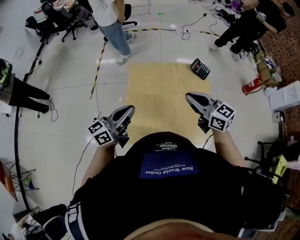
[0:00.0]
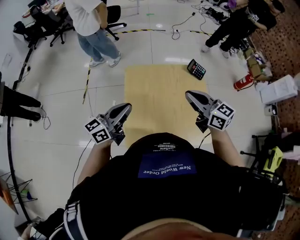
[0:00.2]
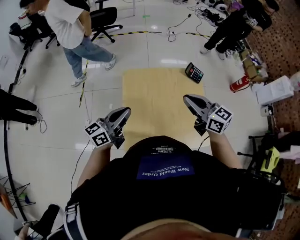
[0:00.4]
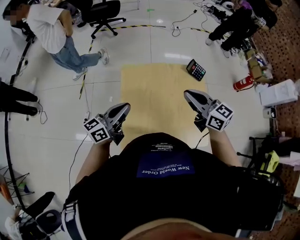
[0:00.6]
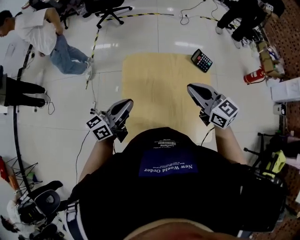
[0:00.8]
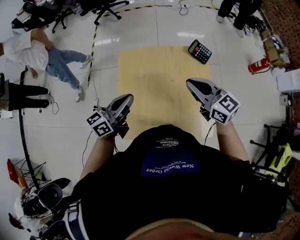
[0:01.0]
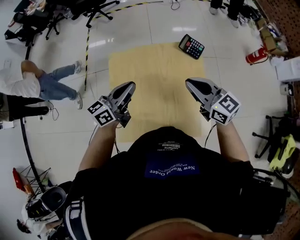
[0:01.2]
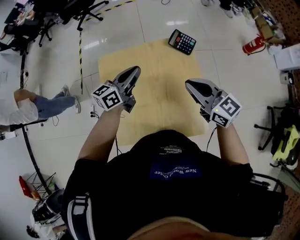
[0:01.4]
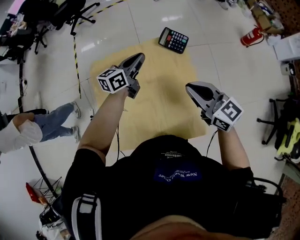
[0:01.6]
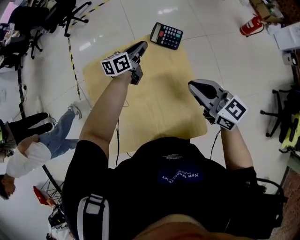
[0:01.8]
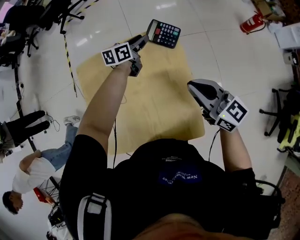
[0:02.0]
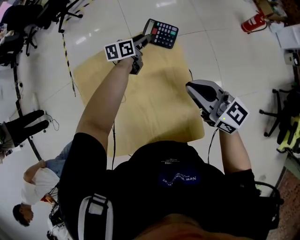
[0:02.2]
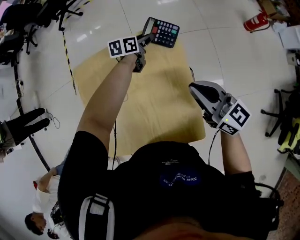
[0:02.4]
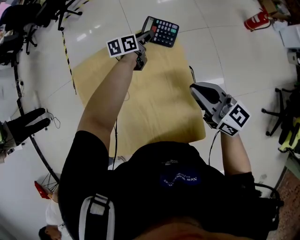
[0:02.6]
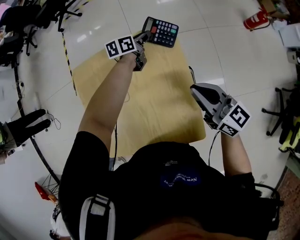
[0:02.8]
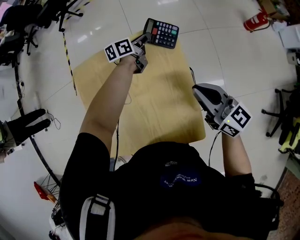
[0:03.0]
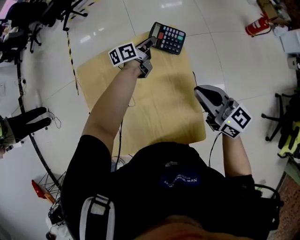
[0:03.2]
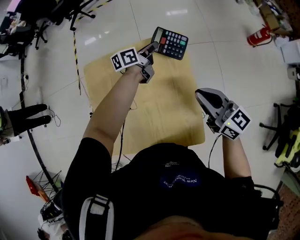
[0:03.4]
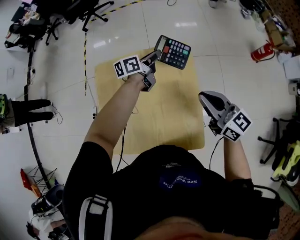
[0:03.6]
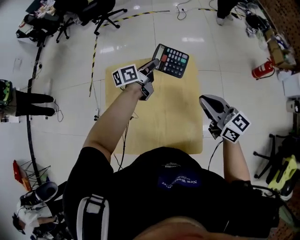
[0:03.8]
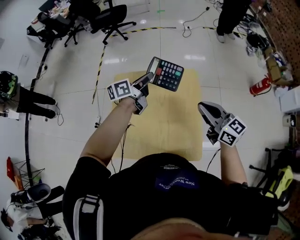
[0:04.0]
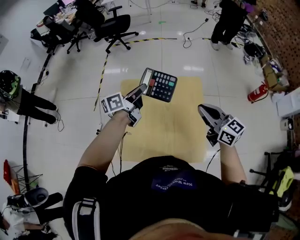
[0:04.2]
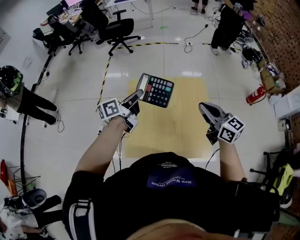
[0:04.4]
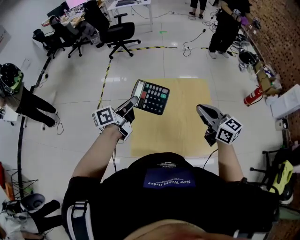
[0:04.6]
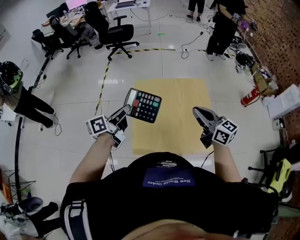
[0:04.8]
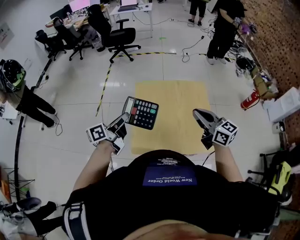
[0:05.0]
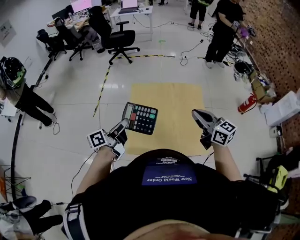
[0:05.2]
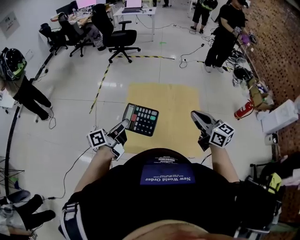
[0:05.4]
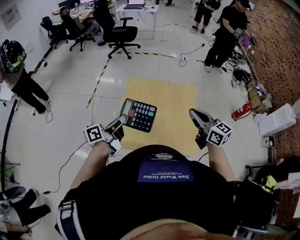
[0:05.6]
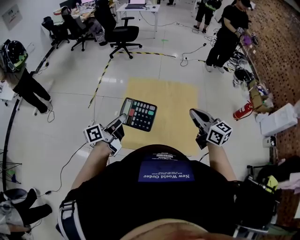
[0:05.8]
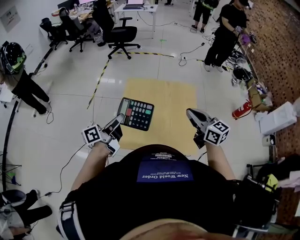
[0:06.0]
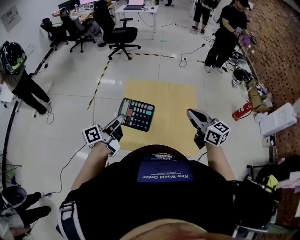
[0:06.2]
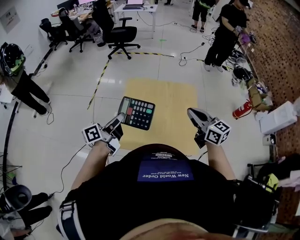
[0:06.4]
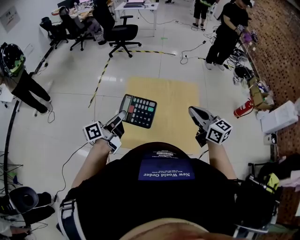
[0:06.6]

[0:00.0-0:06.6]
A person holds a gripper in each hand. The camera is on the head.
0:00.0 to 0:01.6: The left gripper shifts some 40 cm forward, to the right and downward, and swivels some 20 degrees, while the right gripper goes some 20 cm to the right and downward.
0:01.6 to 0:03.2: The left gripper moves downward, forward and to the right, about 20 cm, turns by approximately 20 degrees, and opens and closes again; the right gripper is displaced to the right and downward by some 10 cm.
0:03.2 to 0:05.0: The left gripper shifts about 70 cm to the left, backward and upward, and turns by some 30 degrees; the right gripper is displaced to the left, upward and backward by roughly 35 cm.
0:05.0 to 0:06.6: The two grippers go approximately 5 cm to the right.

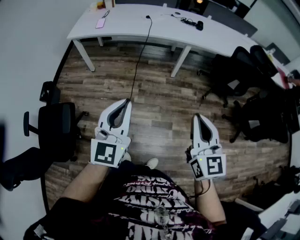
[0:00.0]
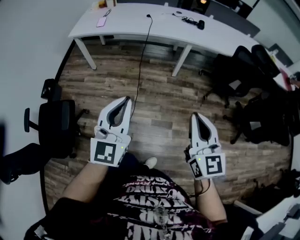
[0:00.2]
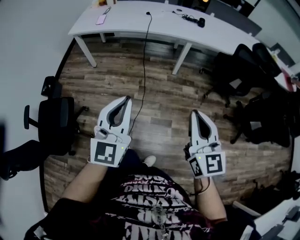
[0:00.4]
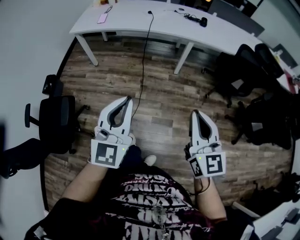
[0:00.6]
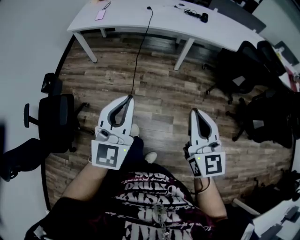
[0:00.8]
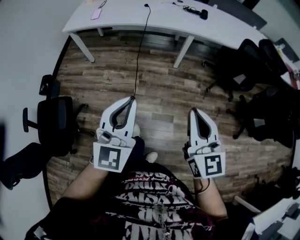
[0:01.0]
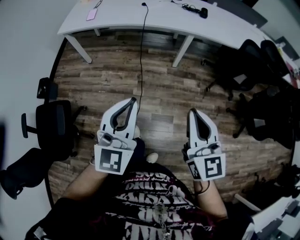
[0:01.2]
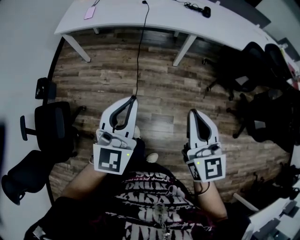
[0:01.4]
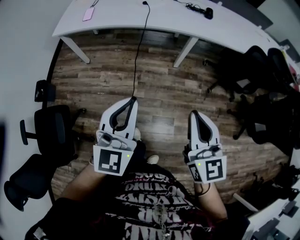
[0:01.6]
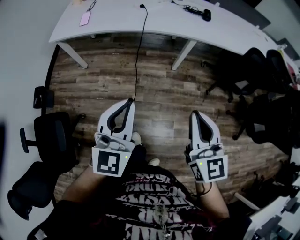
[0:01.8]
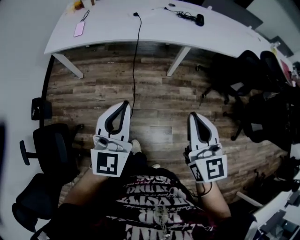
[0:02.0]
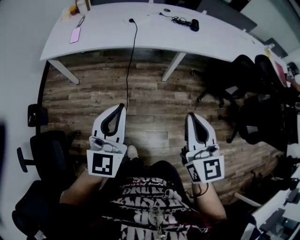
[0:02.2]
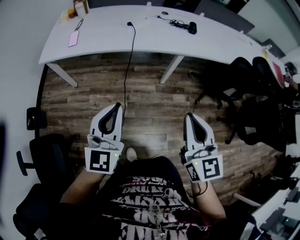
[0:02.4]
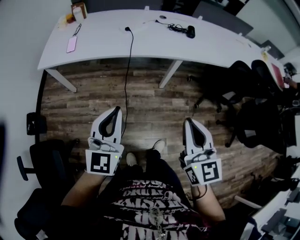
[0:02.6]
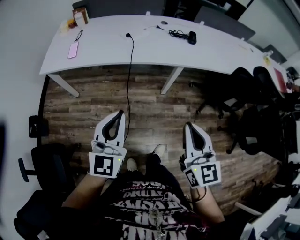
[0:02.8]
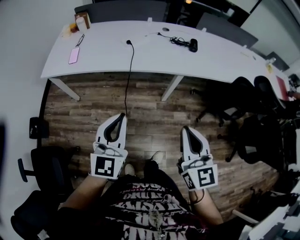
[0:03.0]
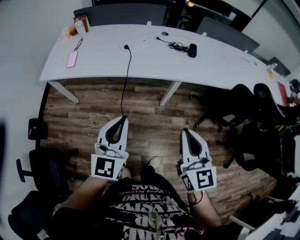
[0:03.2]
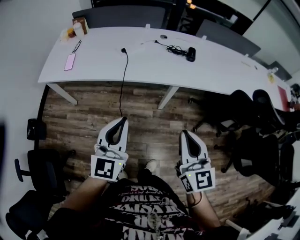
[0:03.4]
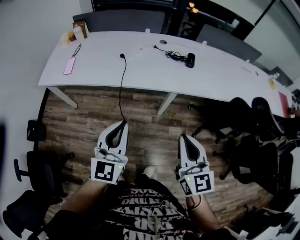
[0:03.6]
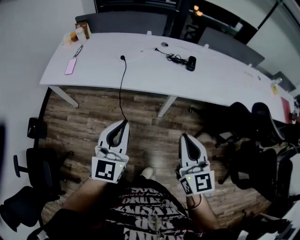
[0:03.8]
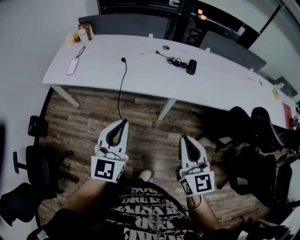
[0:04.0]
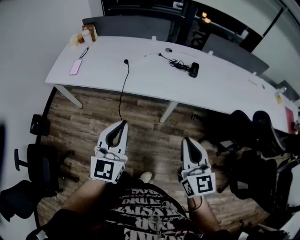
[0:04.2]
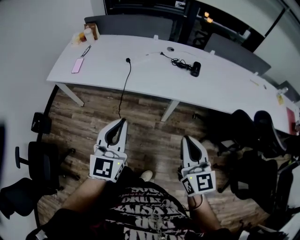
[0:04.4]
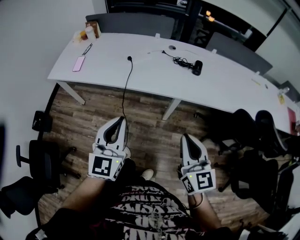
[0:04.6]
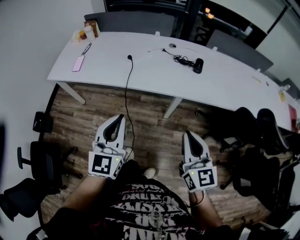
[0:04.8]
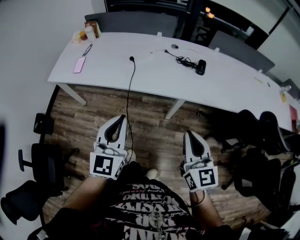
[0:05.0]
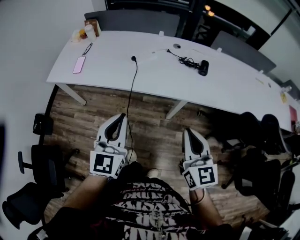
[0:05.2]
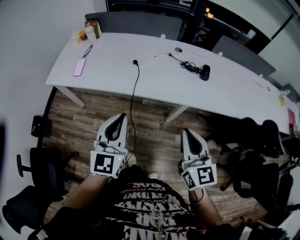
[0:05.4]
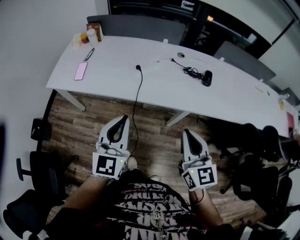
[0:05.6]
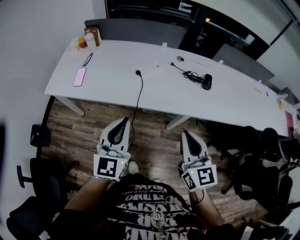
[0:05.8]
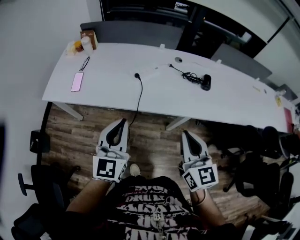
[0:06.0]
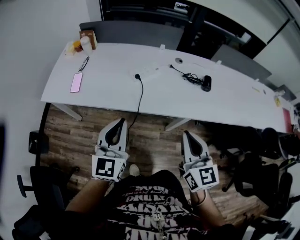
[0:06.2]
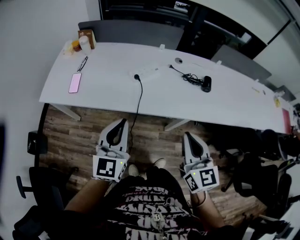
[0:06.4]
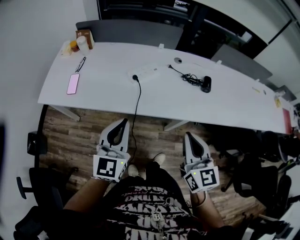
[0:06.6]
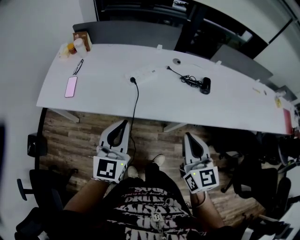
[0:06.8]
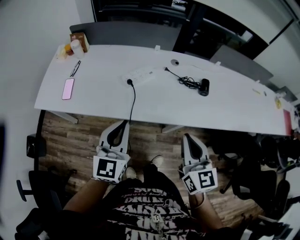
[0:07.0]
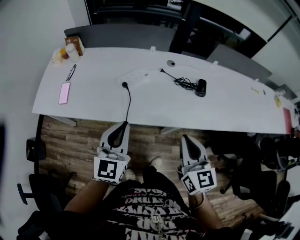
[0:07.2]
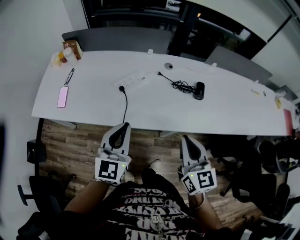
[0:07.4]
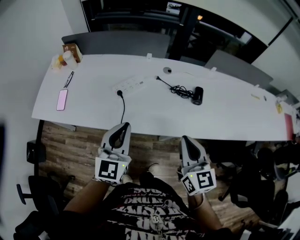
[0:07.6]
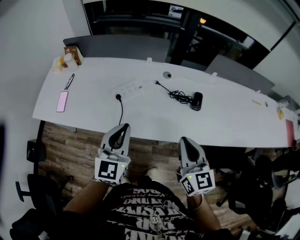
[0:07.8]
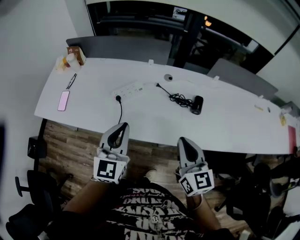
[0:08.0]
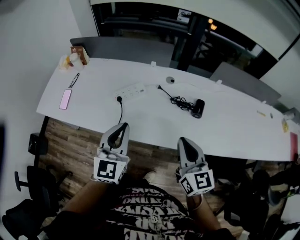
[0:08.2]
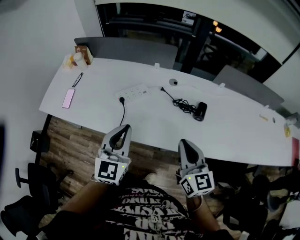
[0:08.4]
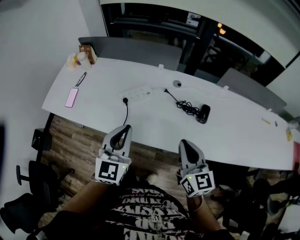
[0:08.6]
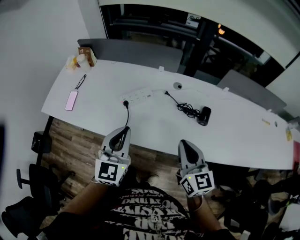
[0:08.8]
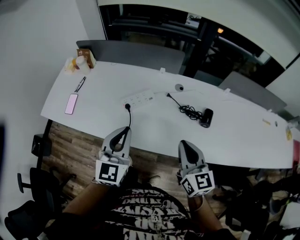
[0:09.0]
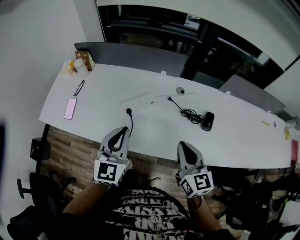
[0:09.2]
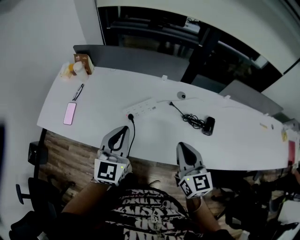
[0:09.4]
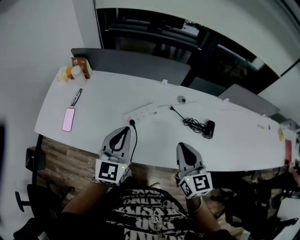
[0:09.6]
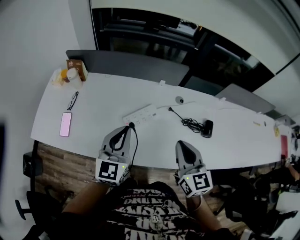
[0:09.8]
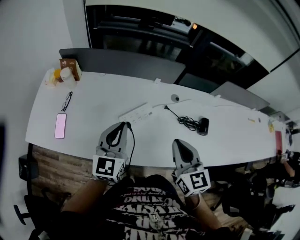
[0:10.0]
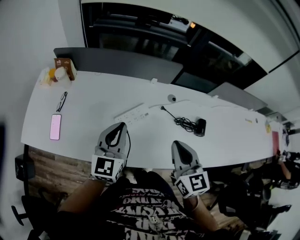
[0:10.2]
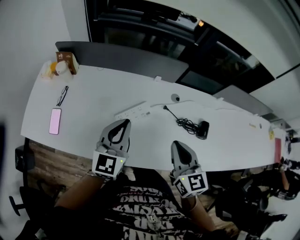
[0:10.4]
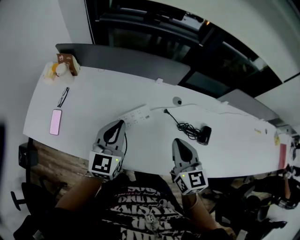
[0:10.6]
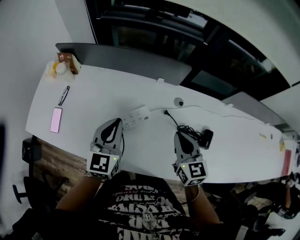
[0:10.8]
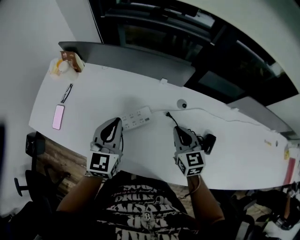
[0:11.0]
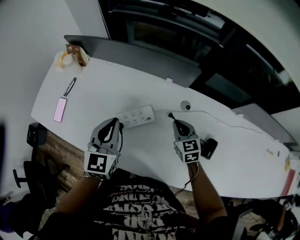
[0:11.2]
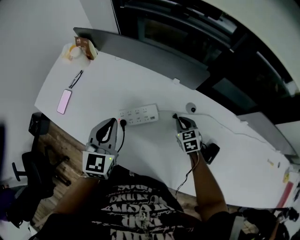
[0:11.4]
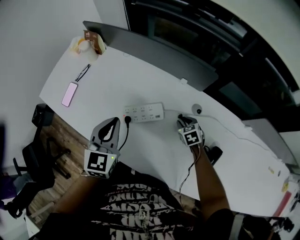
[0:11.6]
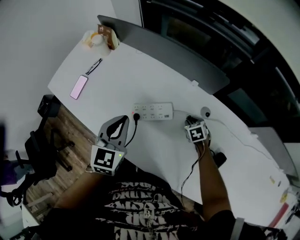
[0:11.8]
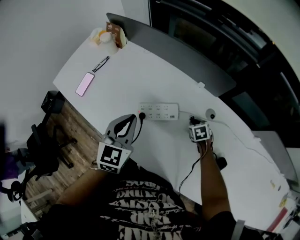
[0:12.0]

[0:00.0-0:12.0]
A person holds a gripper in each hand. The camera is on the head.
0:00.0 to 0:01.6: The grippers both shift forward by about 15 cm.
0:01.6 to 0:03.0: Both grippers travel together forward, some 15 cm.
0:03.0 to 0:04.4: The two grippers go roughly 15 cm to the right and forward.
0:04.4 to 0:06.0: The grippers both shift forward and to the left by some 20 cm.
0:06.0 to 0:07.6: Both grippers travel together forward and to the right, about 15 cm.
0:07.6 to 0:09.0: Both grippers move forward, approximately 10 cm.
0:09.0 to 0:10.4: The grippers both shift forward and to the left by approximately 15 cm.
0:10.4 to 0:12.0: The left gripper heads downward, covering roughly 5 cm, and turns by roughly 30 degrees, while the right gripper moves downward, about 35 cm, and tips its fingers downward by some 50 degrees.

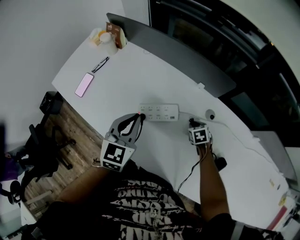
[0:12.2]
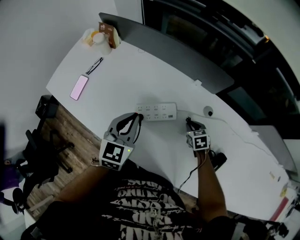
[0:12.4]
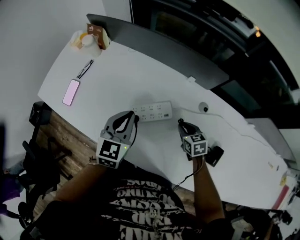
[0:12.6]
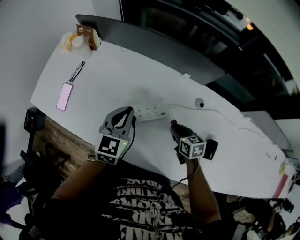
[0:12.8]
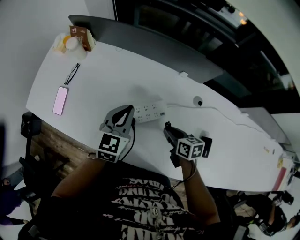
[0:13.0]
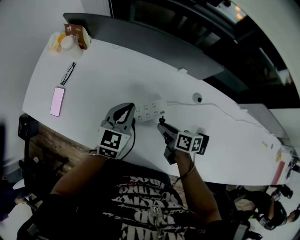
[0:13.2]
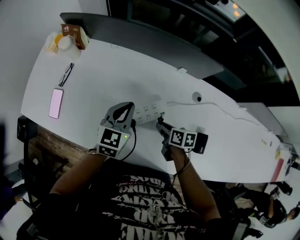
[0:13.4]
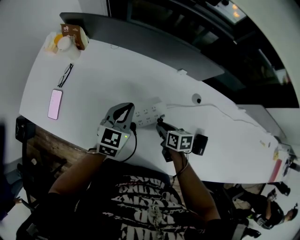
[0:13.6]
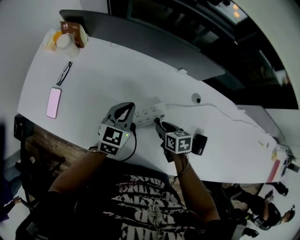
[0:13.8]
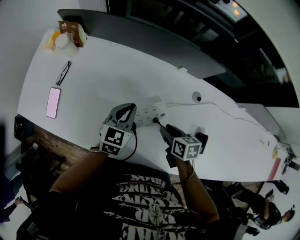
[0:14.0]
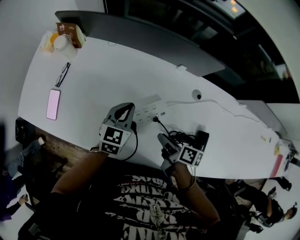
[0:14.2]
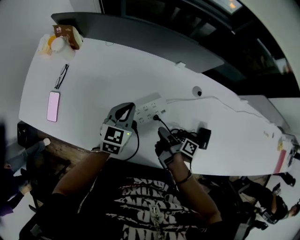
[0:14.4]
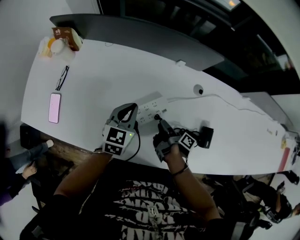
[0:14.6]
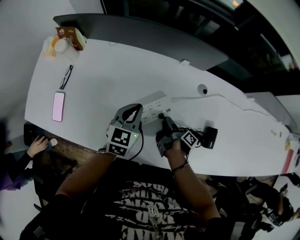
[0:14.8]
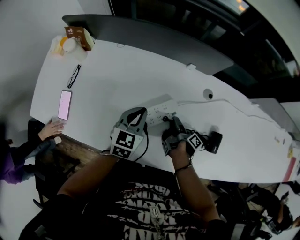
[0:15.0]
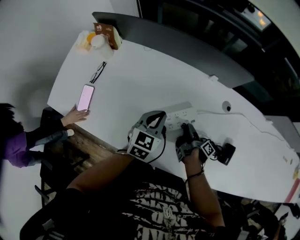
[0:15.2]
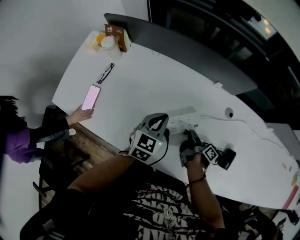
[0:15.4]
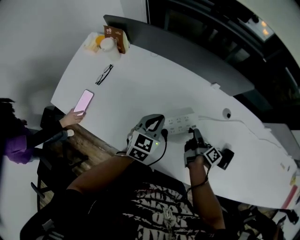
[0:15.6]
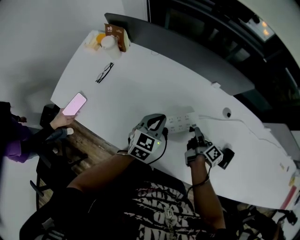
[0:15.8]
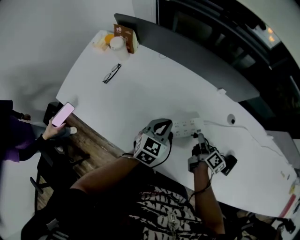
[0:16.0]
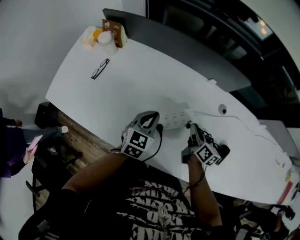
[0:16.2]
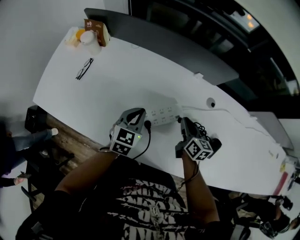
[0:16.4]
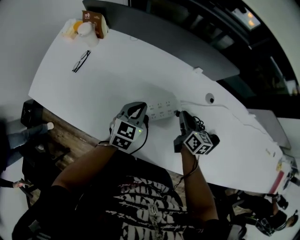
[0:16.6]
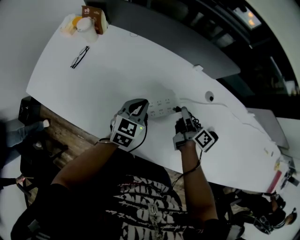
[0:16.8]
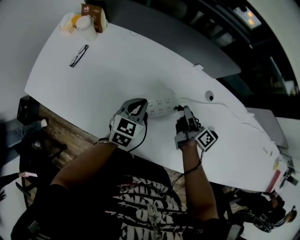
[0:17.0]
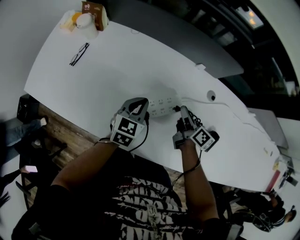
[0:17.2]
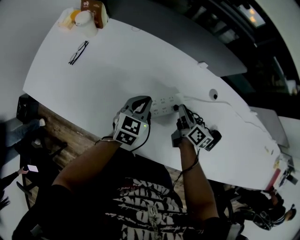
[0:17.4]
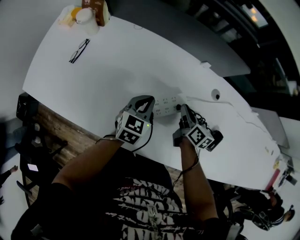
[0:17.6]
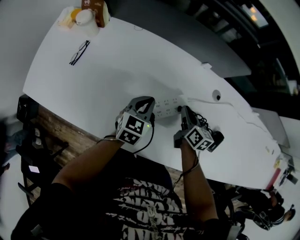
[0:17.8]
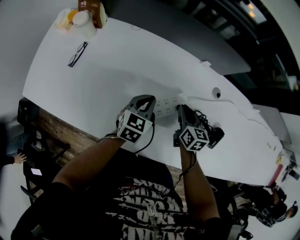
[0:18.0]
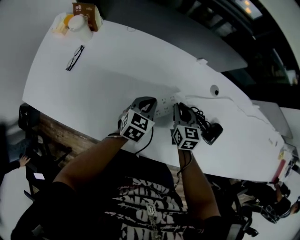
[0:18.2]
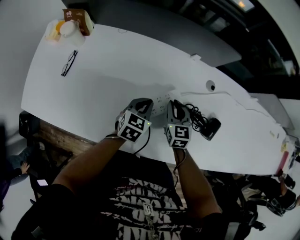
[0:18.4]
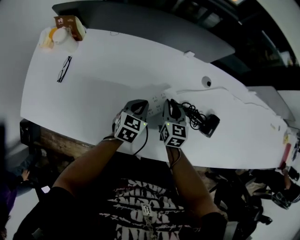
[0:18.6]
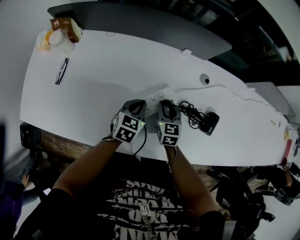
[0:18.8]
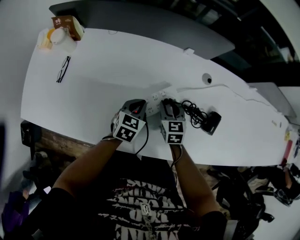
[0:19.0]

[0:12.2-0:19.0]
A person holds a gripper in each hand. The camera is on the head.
0:12.2 to 0:13.6: The left gripper moves forward and downward, roughly 10 cm, and changes its angle by roughly 20 degrees; the right gripper heads to the left and upward, covering about 15 cm, and swivels some 40 degrees.
0:13.6 to 0:15.0: The right gripper rolls clockwise, seen from behind, by about 80 degrees.
0:15.0 to 0:16.2: The right gripper shifts about 10 cm upward, rotates around the line of its fingers by some 60 degrees, counterclockwise from behind, and closes; the left gripper changes place by some 5 cm.
0:16.2 to 0:17.6: The left gripper moves approximately 5 cm.
0:17.6 to 0:19.0: The right gripper shifts by about 5 cm, and swivels about 40 degrees. Meanwhile the left gripper is displaced downward by some 5 cm.
